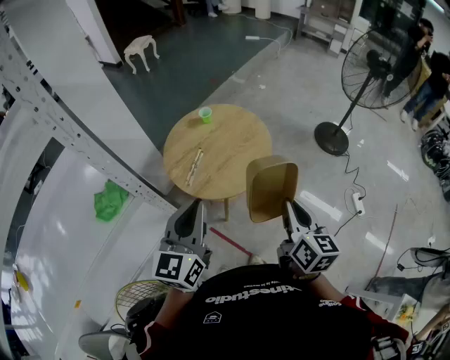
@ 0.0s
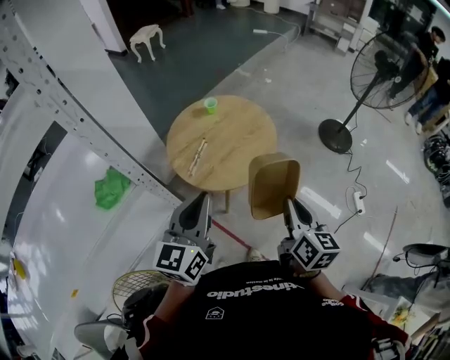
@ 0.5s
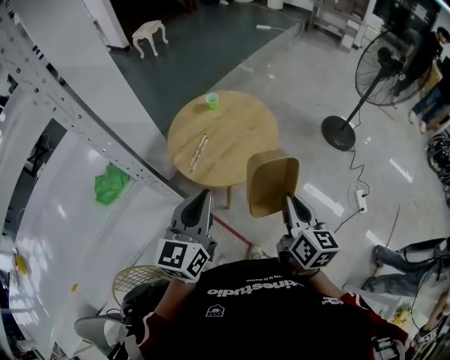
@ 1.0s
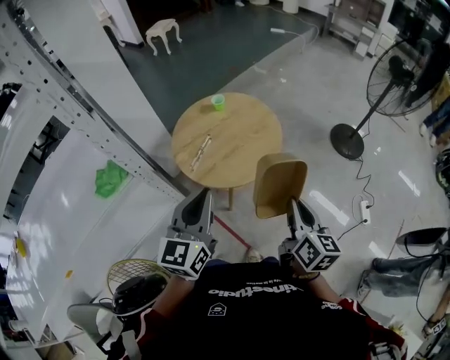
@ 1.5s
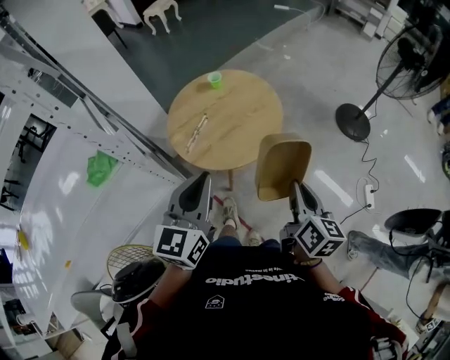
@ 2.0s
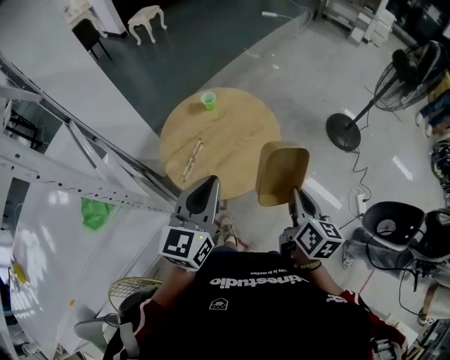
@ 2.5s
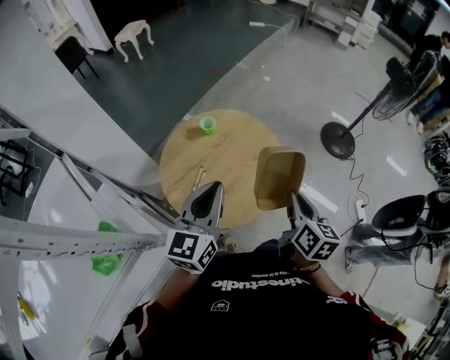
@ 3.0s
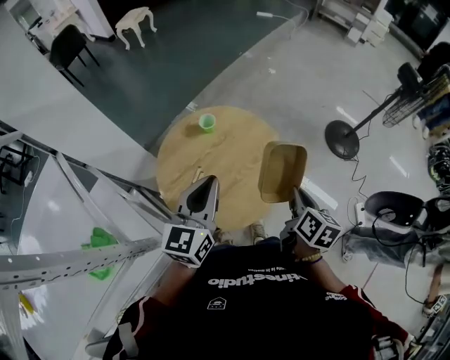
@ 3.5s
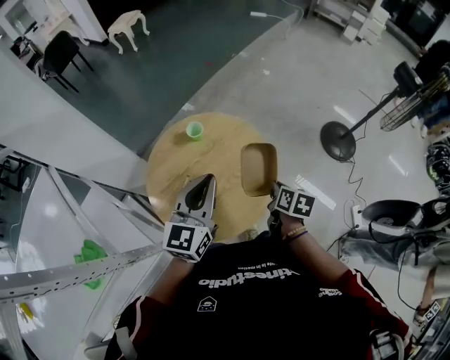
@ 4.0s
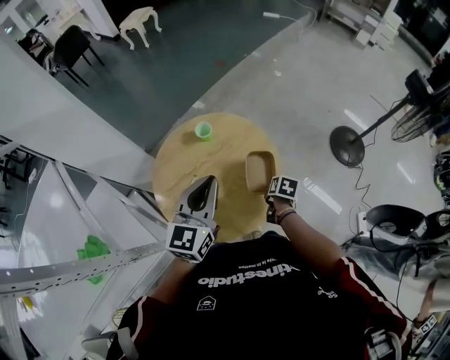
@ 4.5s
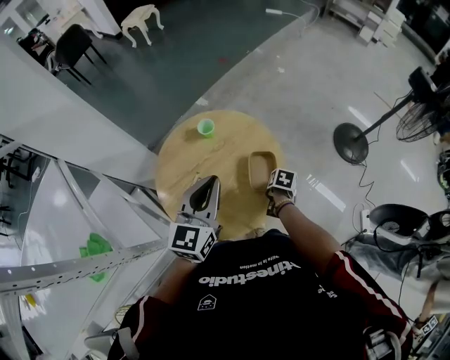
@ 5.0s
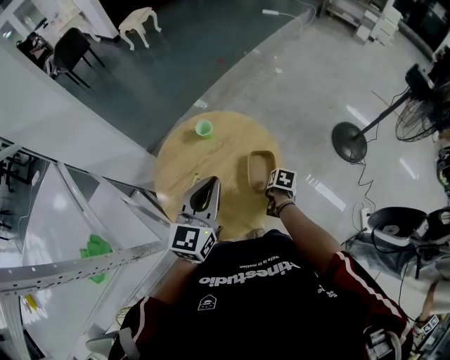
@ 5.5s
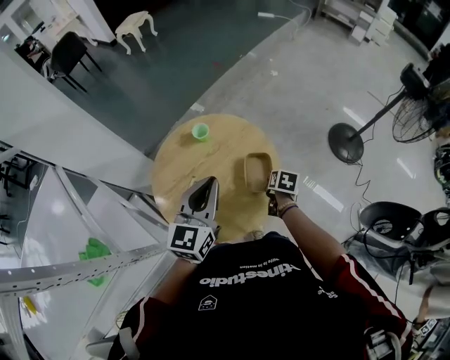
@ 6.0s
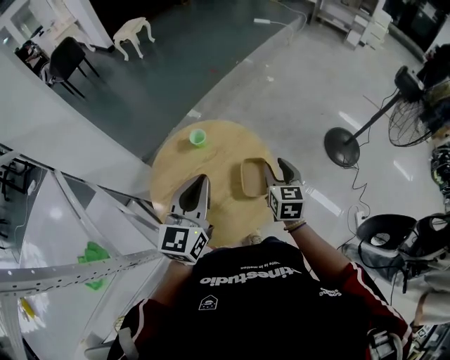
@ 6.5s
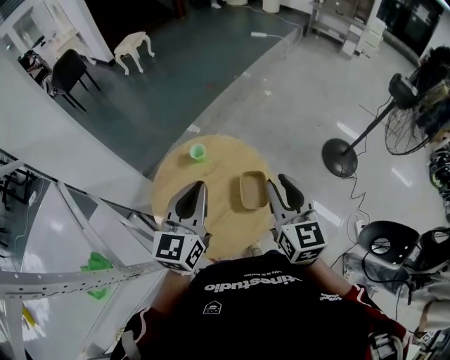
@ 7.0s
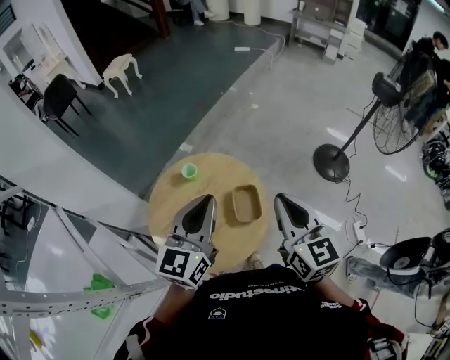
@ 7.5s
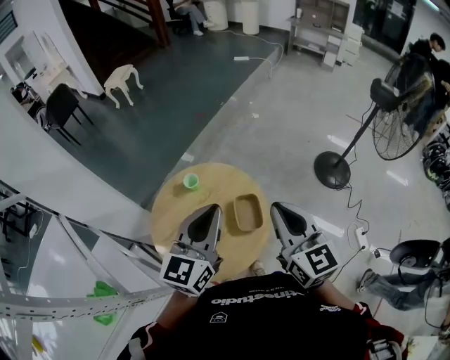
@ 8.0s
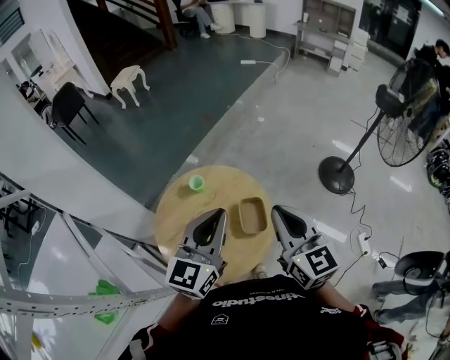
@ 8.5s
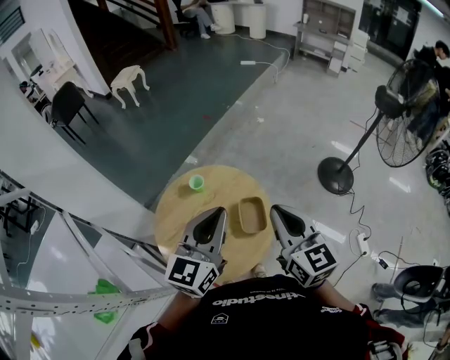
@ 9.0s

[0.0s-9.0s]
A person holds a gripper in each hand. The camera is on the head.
0.0s to 2.0s: The left gripper moves to the right, approximately 5 cm, while the right gripper heads to the right and downward, covering roughly 10 cm.
2.0s to 4.5s: The right gripper heads forward and downward, covering some 50 cm, and tilts its fingers roughly 50 degrees downward. Meanwhile the left gripper is displaced forward by some 35 cm.
4.5s to 7.0s: The left gripper travels upward by approximately 5 cm. The right gripper goes approximately 35 cm upward, tips its fingers upward by roughly 50 degrees, and opens.
7.0s to 9.0s: The left gripper shifts approximately 5 cm to the right; the right gripper ends up about 5 cm from where it was, and closes up.

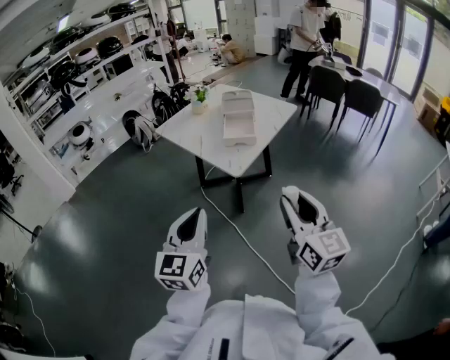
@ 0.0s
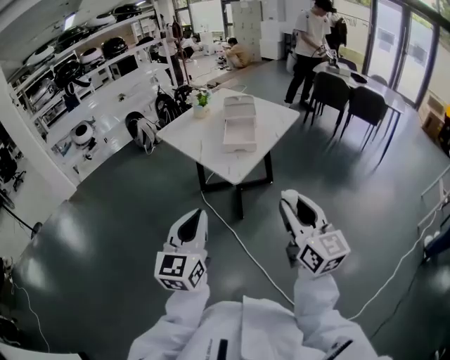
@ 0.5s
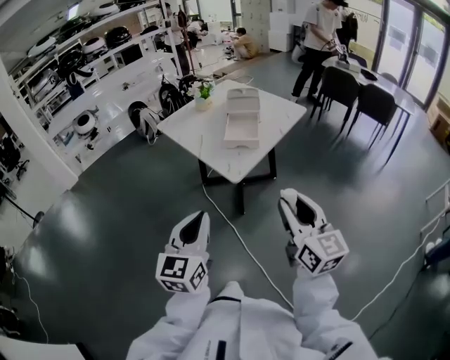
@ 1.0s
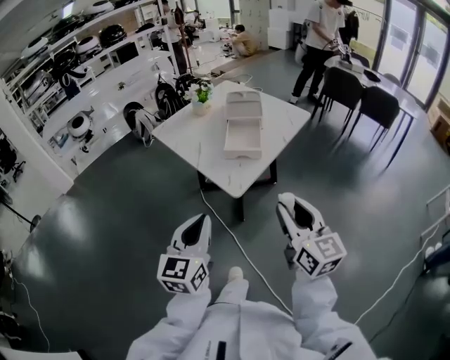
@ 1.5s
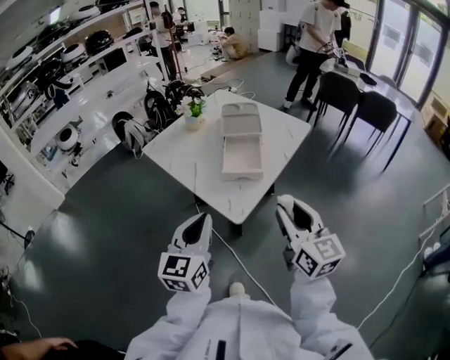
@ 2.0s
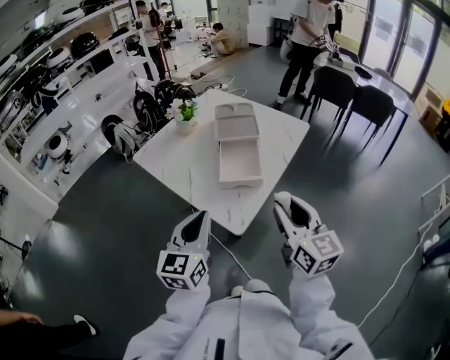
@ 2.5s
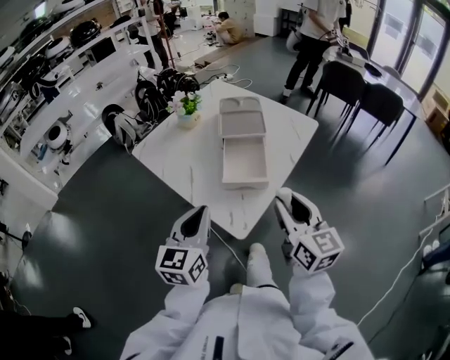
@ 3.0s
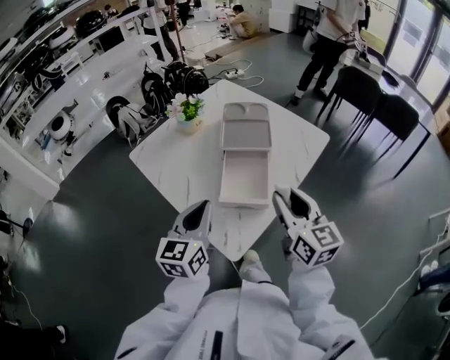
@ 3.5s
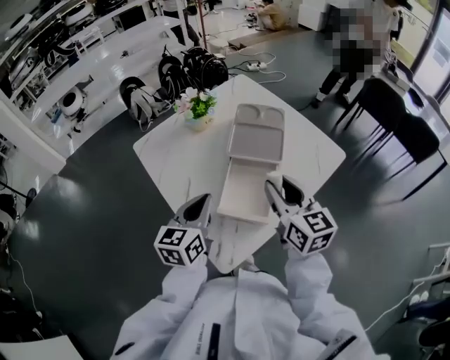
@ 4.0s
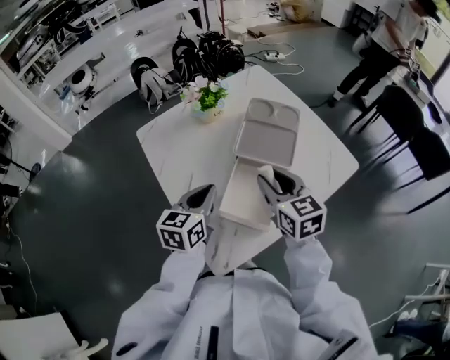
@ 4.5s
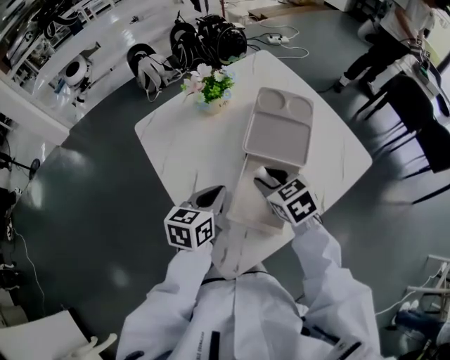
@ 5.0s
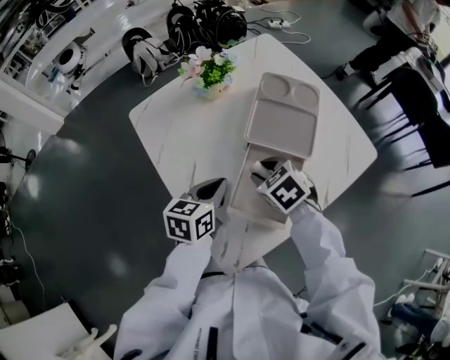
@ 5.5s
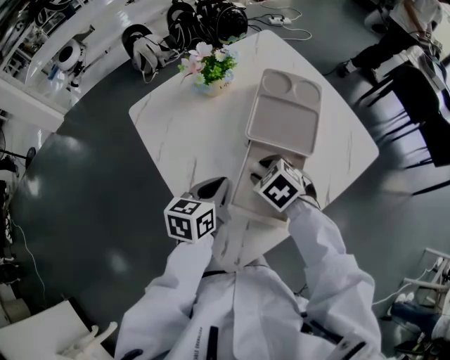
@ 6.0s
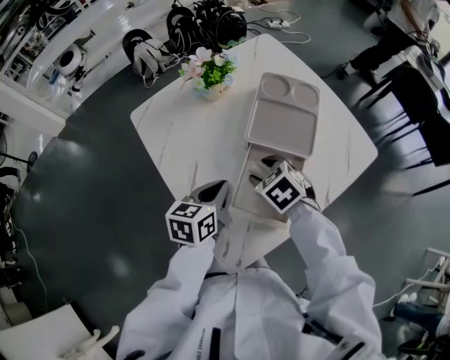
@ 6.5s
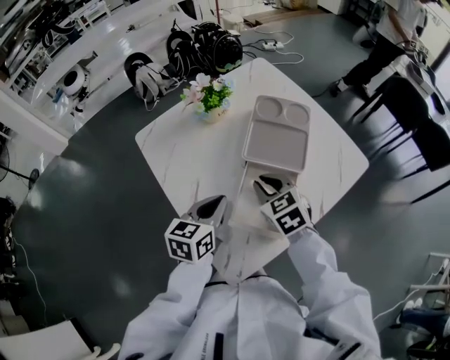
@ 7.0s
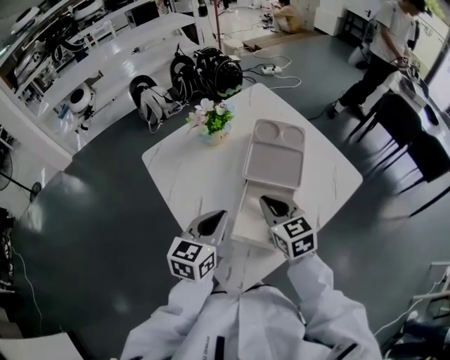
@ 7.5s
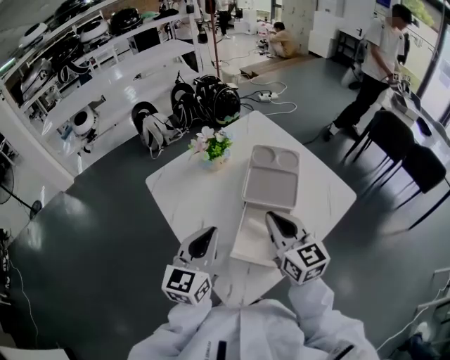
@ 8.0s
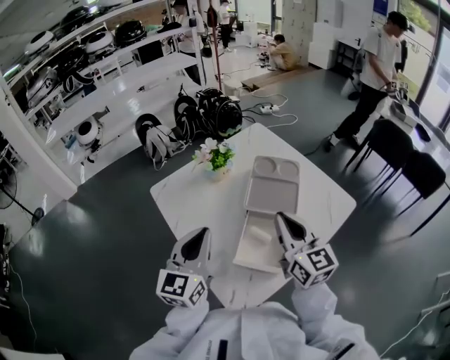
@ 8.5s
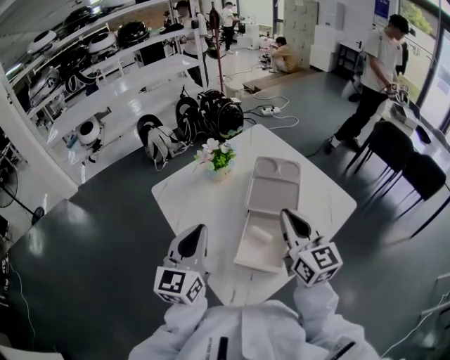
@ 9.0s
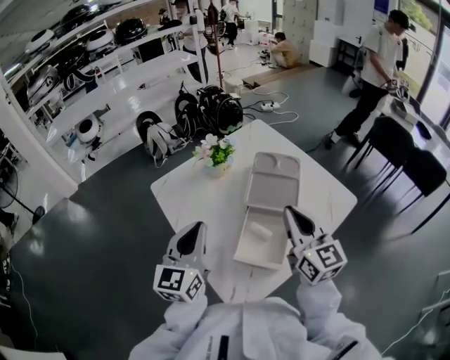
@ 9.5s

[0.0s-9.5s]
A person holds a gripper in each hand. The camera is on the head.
0.0s to 2.0s: The grippers both shift forward by roughly 25 cm.
2.0s to 4.0s: Both grippers travel together forward, some 30 cm.
4.0s to 5.5s: The right gripper shifts roughly 20 cm downward, forward and to the left, and angles its fingers downward, by approximately 50 degrees, while the left gripper heads downward and forward, covering roughly 10 cm.
5.5s to 7.5s: Both grippers move upward, roughly 10 cm. The right gripper angles its fingers upward, by about 30 degrees, and closes up.
7.5s to 9.5s: The right gripper goes some 15 cm upward and to the right, and rotates some 30 degrees; the left gripper heads upward and to the left, covering approximately 10 cm, and changes its angle by roughly 20 degrees.

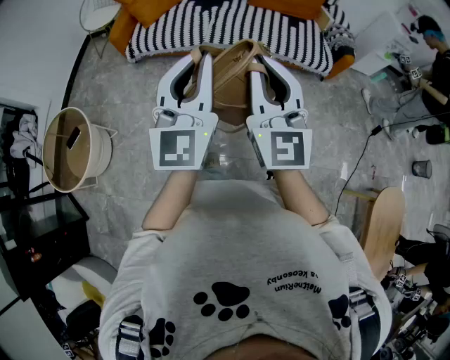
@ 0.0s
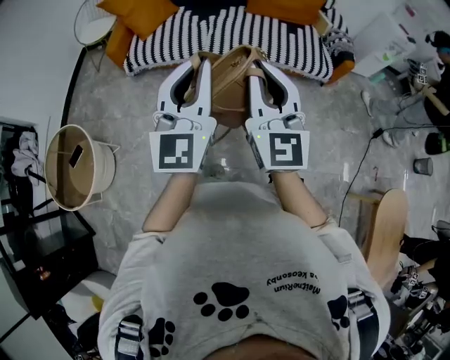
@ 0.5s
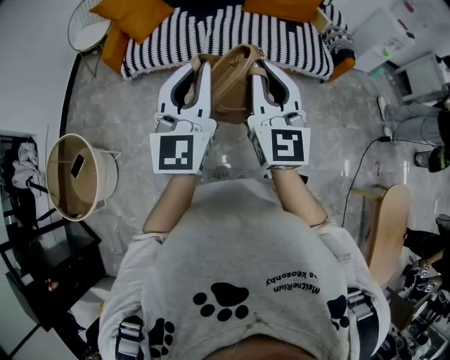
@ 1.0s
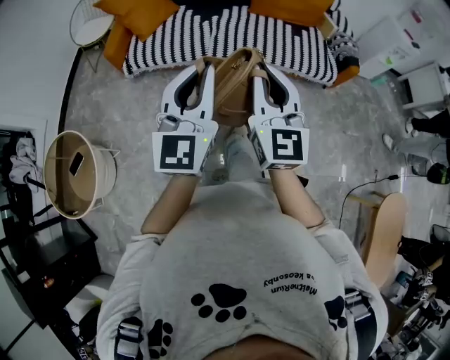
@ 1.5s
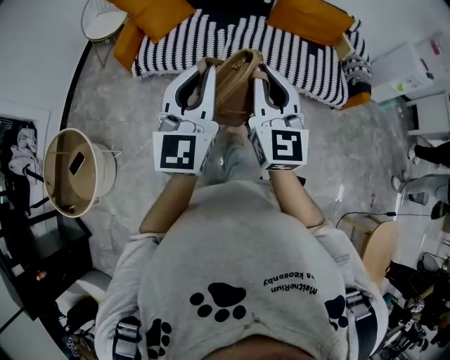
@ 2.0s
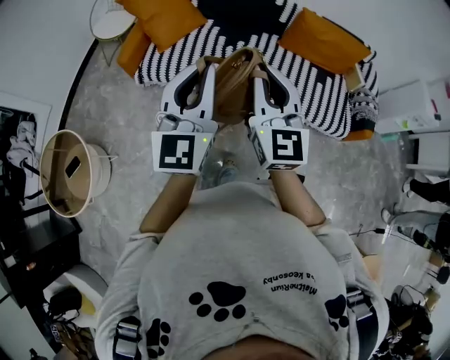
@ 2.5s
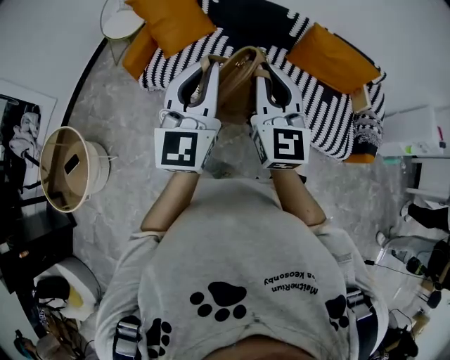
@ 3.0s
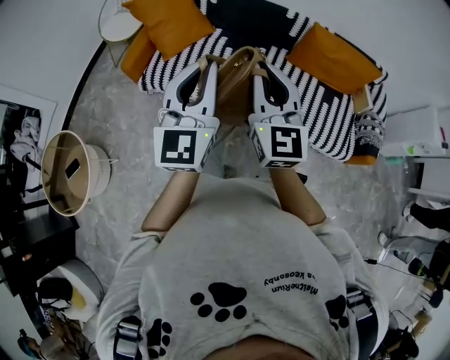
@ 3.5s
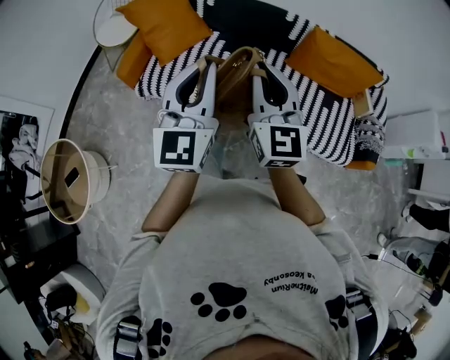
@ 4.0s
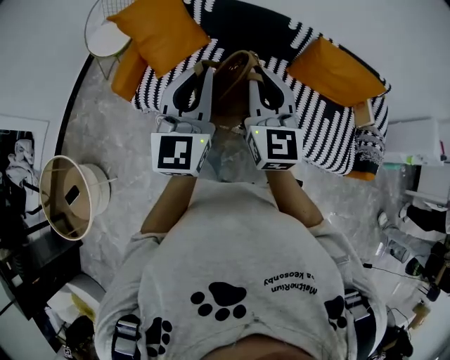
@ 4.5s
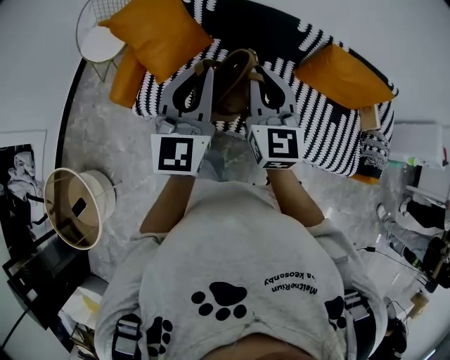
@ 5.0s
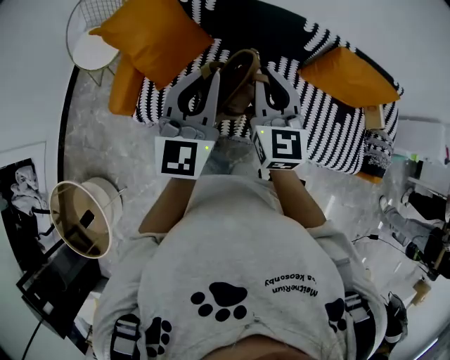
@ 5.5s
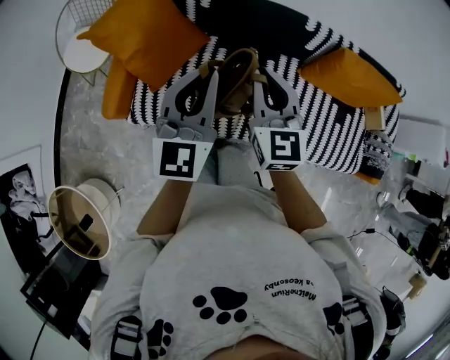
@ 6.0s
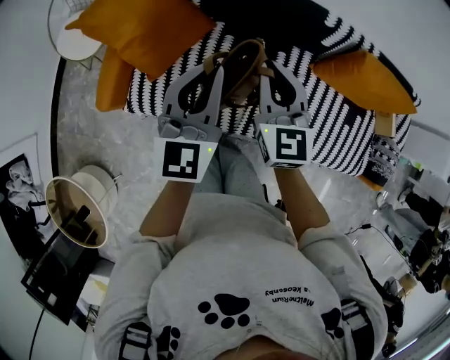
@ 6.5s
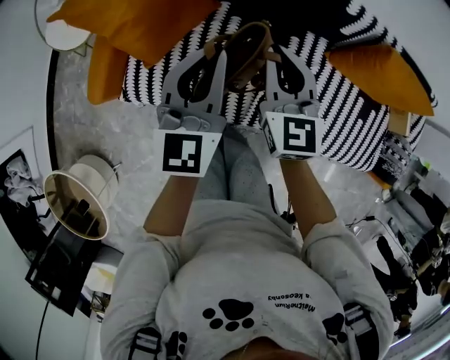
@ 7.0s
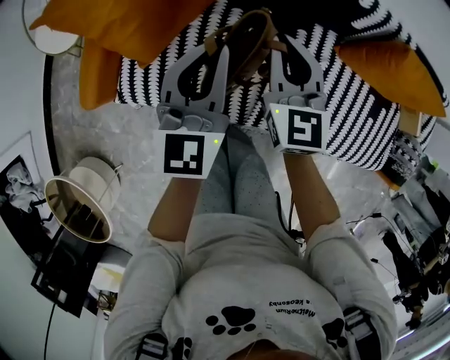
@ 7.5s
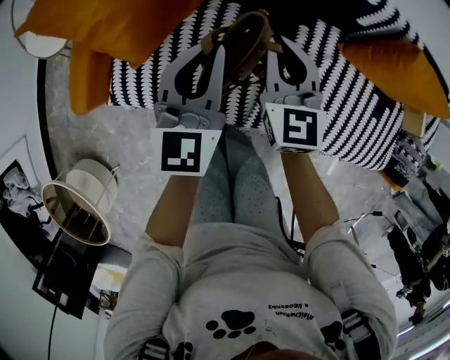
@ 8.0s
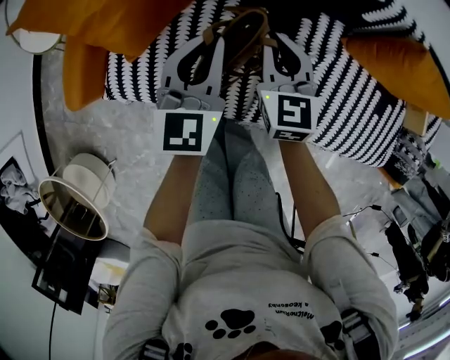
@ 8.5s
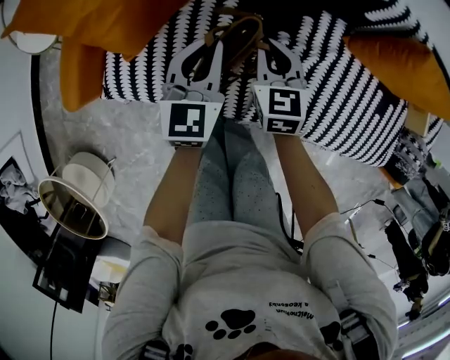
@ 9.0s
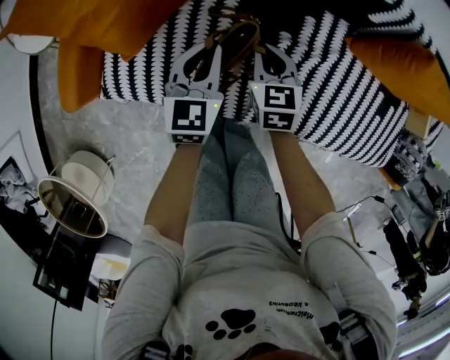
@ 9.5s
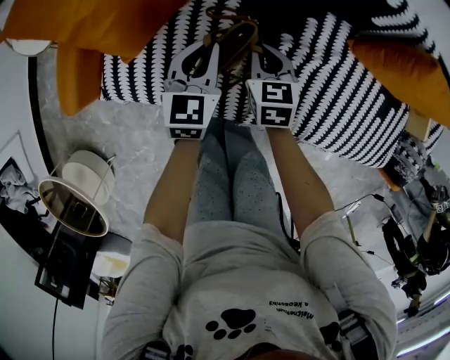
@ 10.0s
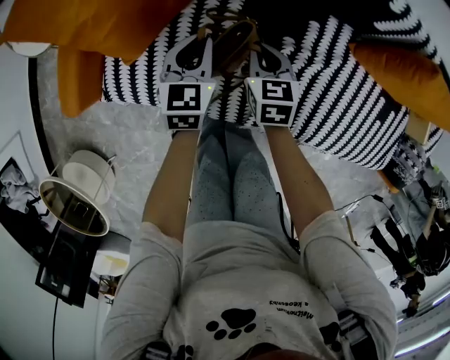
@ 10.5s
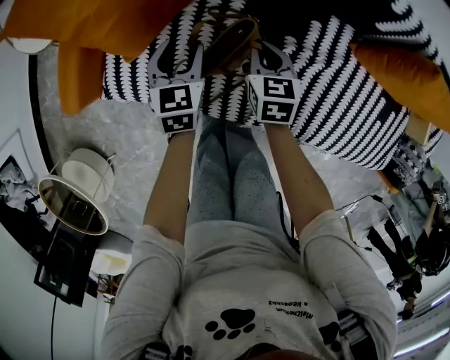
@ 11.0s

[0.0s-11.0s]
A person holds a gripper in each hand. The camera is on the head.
0.0s to 2.0s: The right gripper is displaced forward by about 25 cm. The left gripper heads forward and to the left, covering roughly 30 cm.
2.0s to 3.5s: The grippers both shift forward by approximately 25 cm.
3.5s to 5.5s: The pair of grippers is taken forward, roughly 40 cm.
5.5s to 7.5s: Both grippers travel together downward and forward, about 30 cm.
7.5s to 9.0s: Both grippers move downward, roughly 15 cm.
9.0s to 11.0s: The left gripper shifts approximately 10 cm downward and to the left, changes its angle by approximately 20 degrees, and opens up, while the right gripper heads downward, covering about 5 cm.
